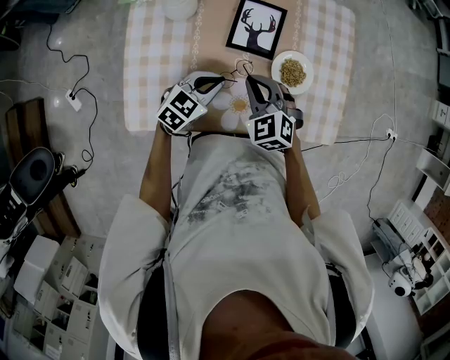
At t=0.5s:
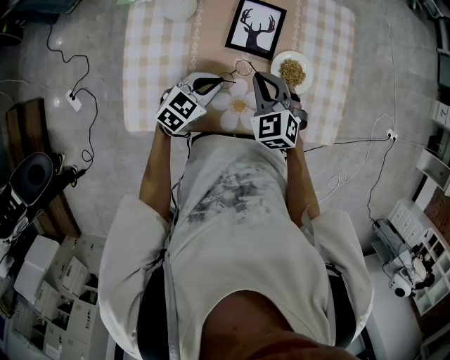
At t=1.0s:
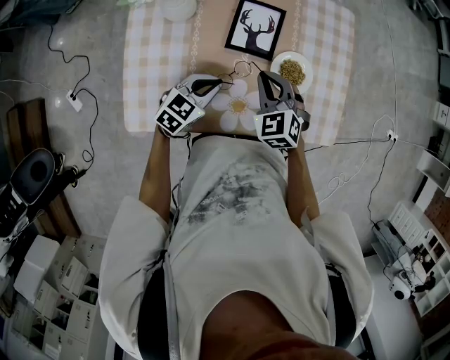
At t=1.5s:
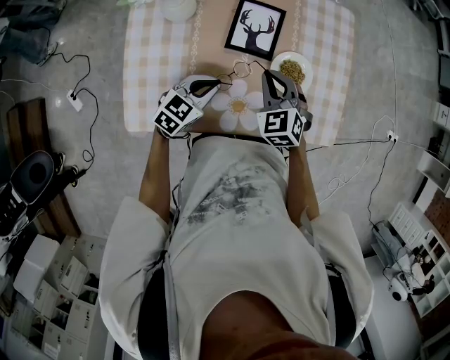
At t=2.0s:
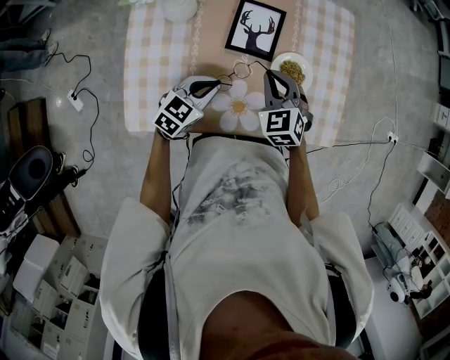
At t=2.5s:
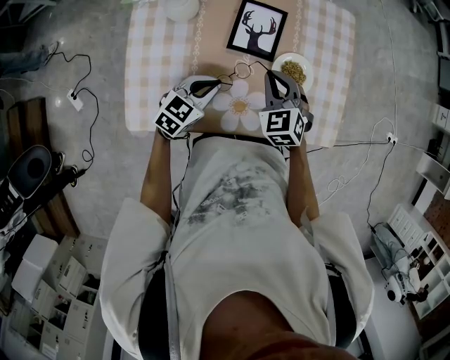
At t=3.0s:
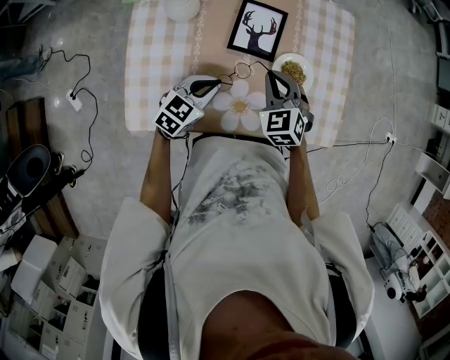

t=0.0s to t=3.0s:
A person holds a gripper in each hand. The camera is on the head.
t=0.0s to t=1.5s: The right gripper shifts by about 5 cm.
t=1.5s to t=3.0s: The two grippers keep their place.

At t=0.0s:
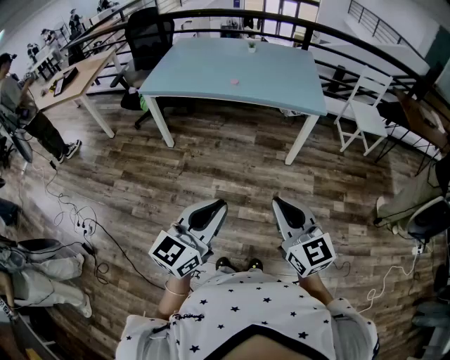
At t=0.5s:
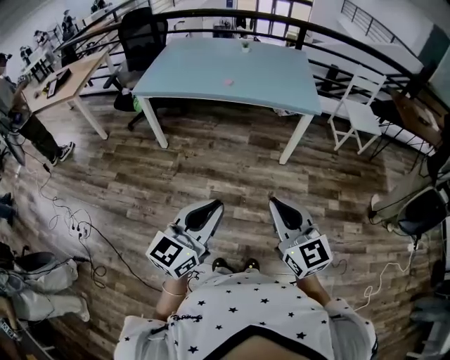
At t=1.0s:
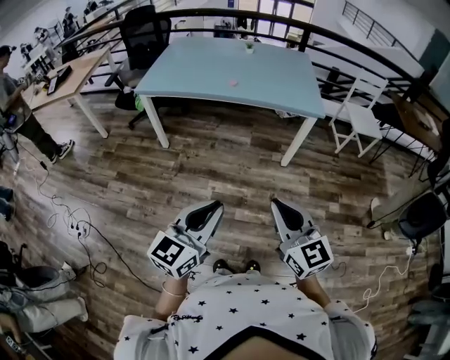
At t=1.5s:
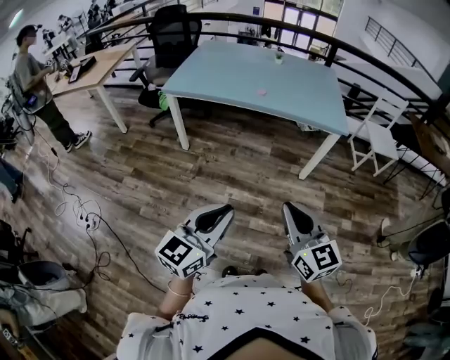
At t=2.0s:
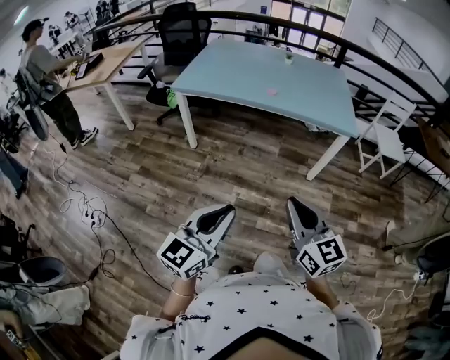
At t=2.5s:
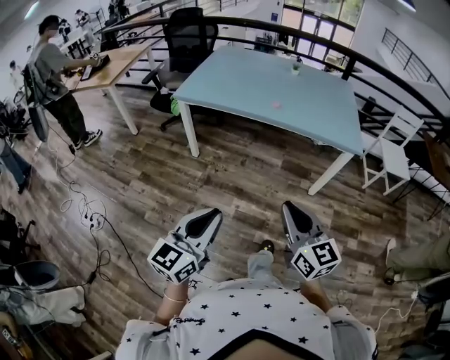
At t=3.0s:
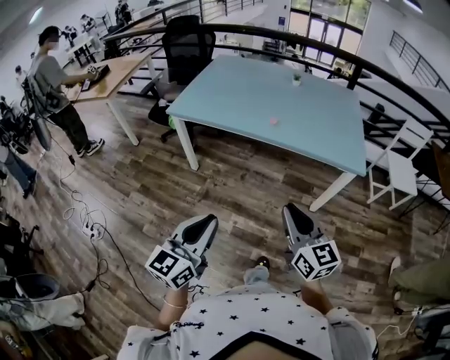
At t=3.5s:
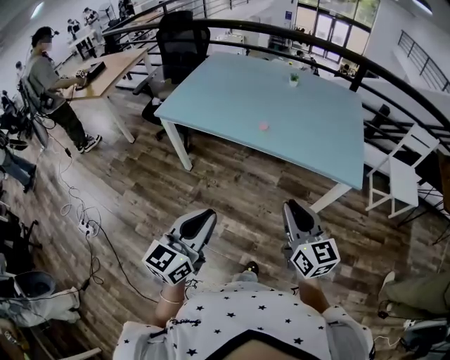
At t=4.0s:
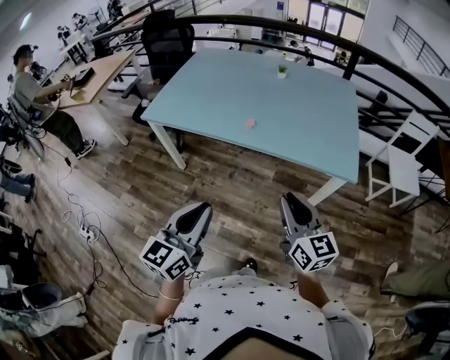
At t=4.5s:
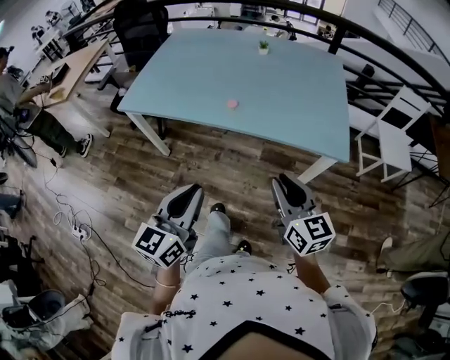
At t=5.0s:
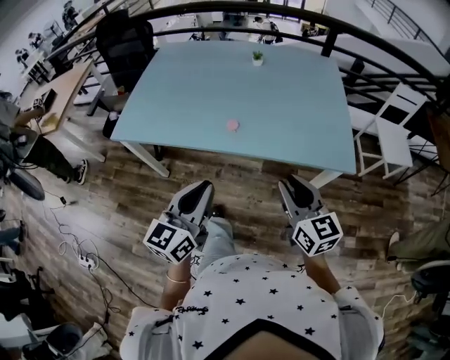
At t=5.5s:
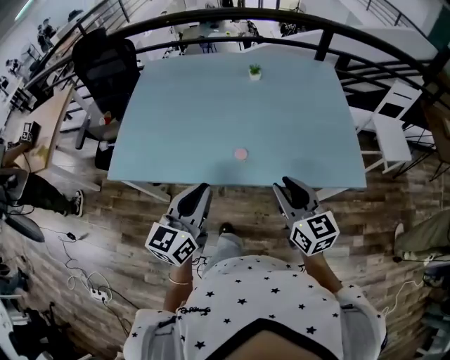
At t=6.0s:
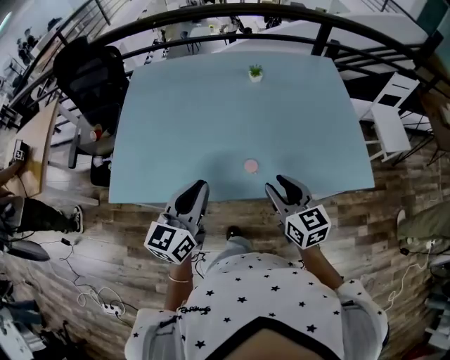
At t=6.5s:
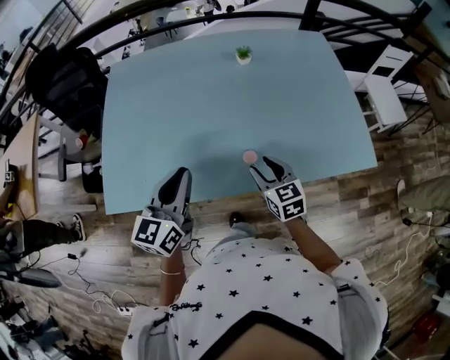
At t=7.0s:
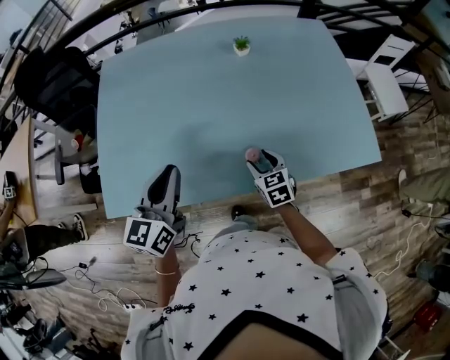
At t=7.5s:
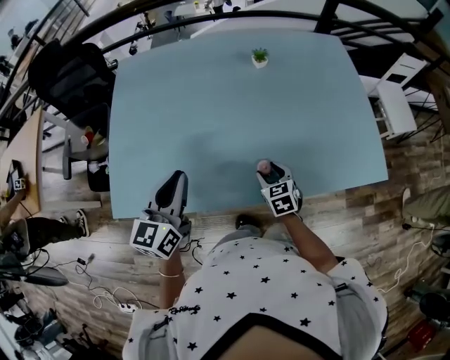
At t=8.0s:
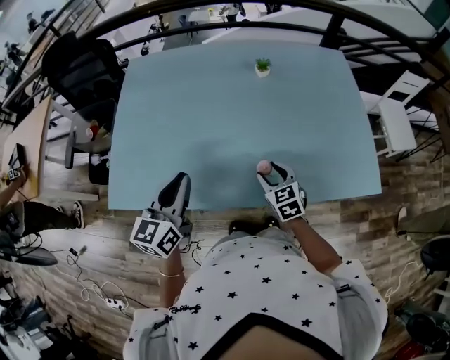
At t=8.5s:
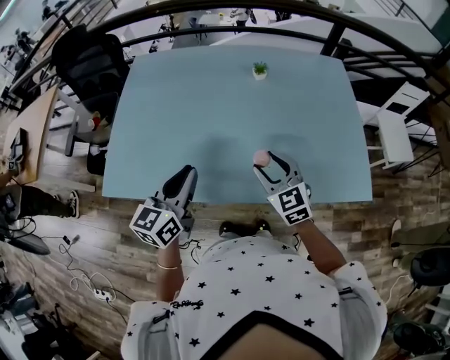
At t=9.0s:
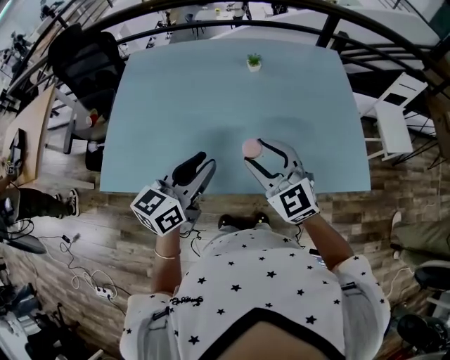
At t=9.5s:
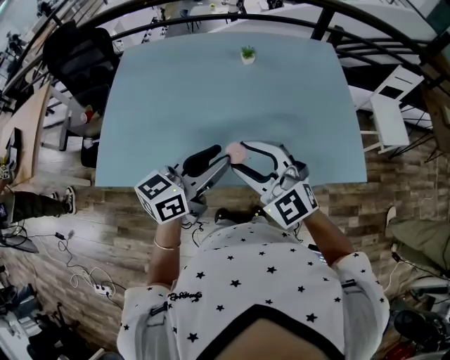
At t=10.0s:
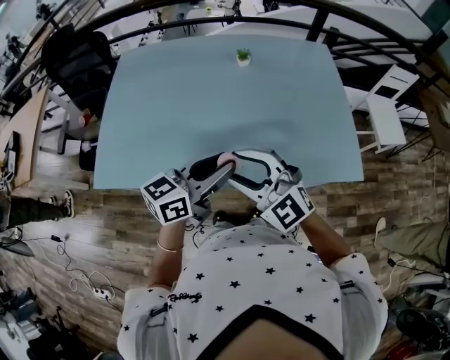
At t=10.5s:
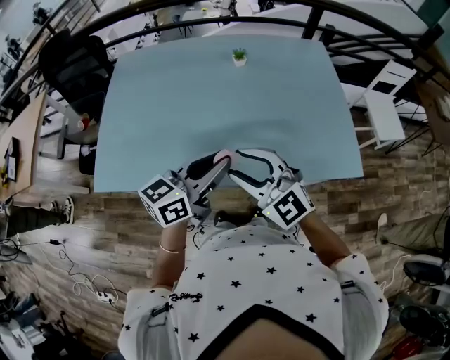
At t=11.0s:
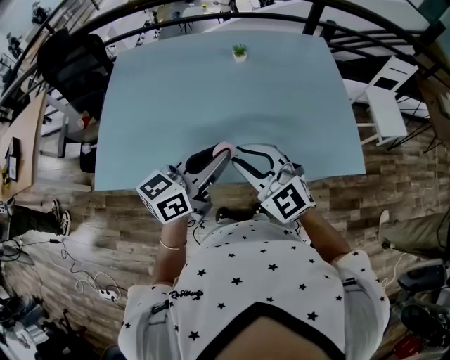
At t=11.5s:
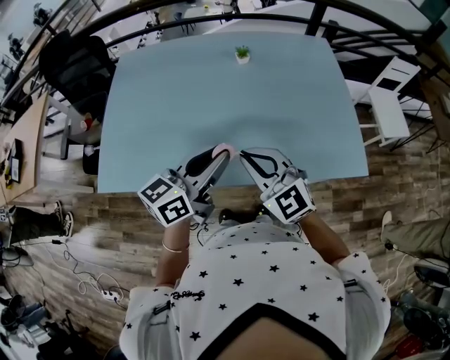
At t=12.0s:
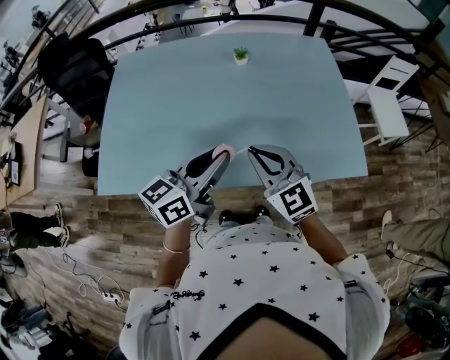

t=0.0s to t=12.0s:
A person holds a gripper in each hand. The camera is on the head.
t=0.0s to t=2.0s: The grippers both shift to the left by some 10 cm.
t=2.0s to t=4.0s: Both grippers move forward and to the right, approximately 35 cm.
t=4.0s to t=6.0s: The left gripper is displaced forward by some 40 cm. The right gripper heads forward and to the left, covering about 35 cm.
t=6.0s to t=8.0s: The left gripper travels forward and to the left by some 10 cm, while the right gripper moves downward and forward, approximately 15 cm, and swivels roughly 20 degrees.
t=8.0s to t=10.0s: The left gripper is displaced to the right by about 20 cm, rotates roughly 30 degrees, and opens; the right gripper moves upward and backward, about 25 cm, and changes its angle by about 50 degrees.
t=10.0s to t=12.0s: The right gripper moves some 5 cm, changes its angle by roughly 20 degrees, and closes its fingers.

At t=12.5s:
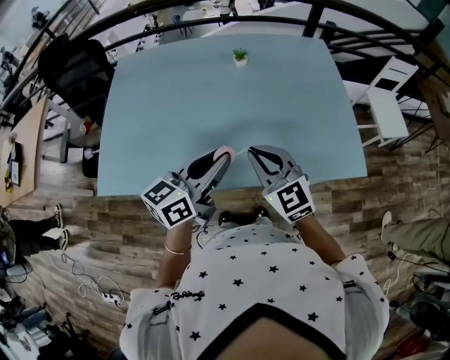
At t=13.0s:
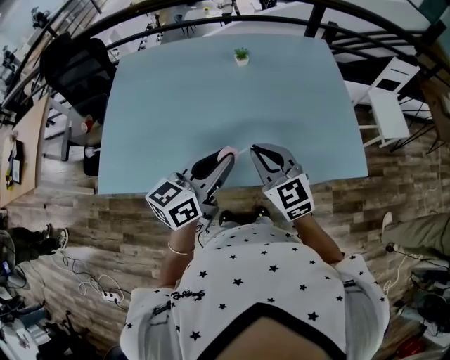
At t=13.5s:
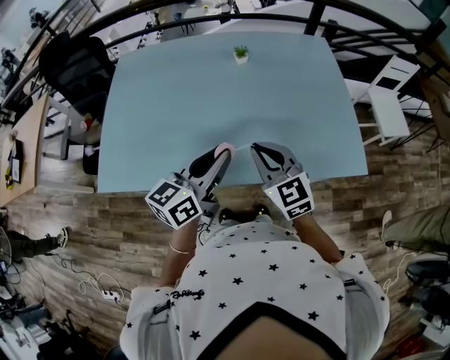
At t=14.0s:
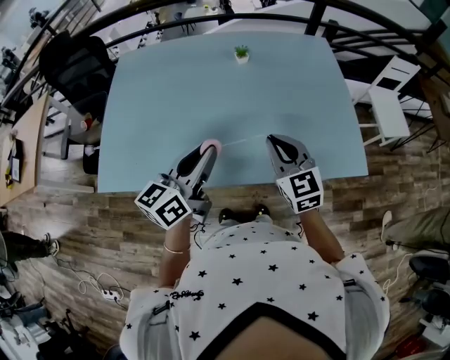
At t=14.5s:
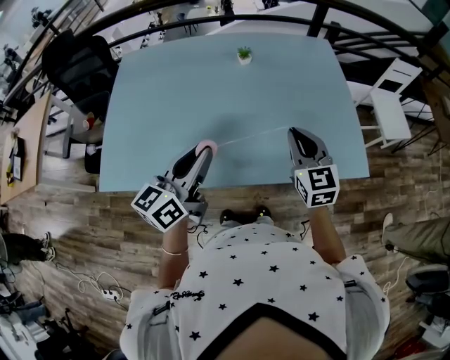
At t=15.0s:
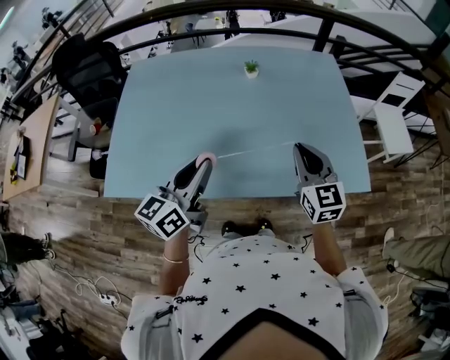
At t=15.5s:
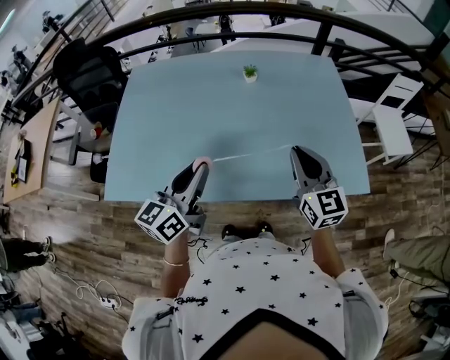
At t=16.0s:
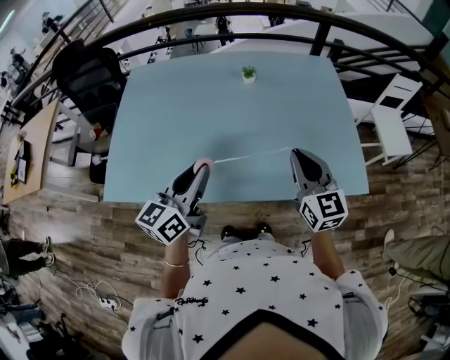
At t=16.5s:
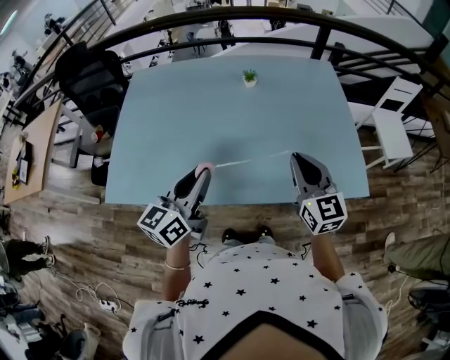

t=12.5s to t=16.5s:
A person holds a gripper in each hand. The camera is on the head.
t=12.5s to t=14.5s: The right gripper moves to the right and forward, roughly 10 cm, and rotates some 20 degrees.
t=14.5s to t=16.5s: The grippers move only a little.

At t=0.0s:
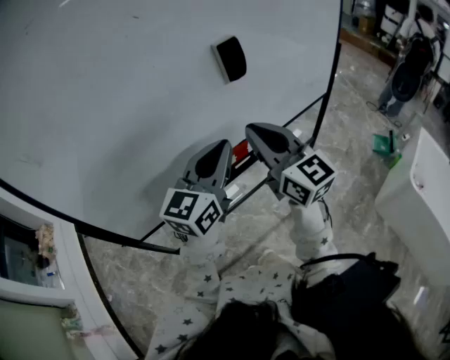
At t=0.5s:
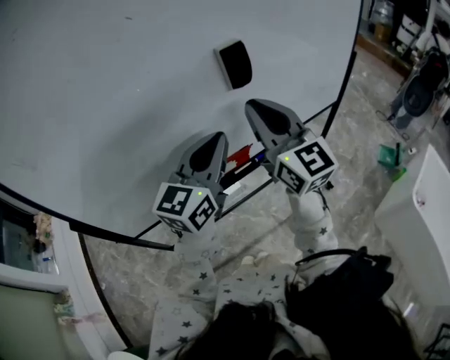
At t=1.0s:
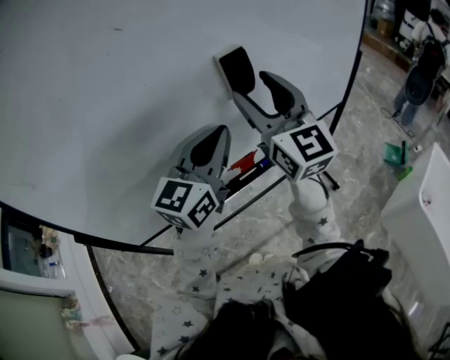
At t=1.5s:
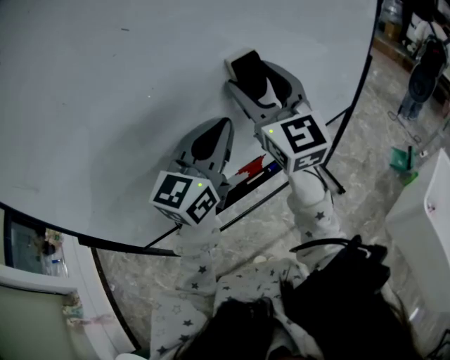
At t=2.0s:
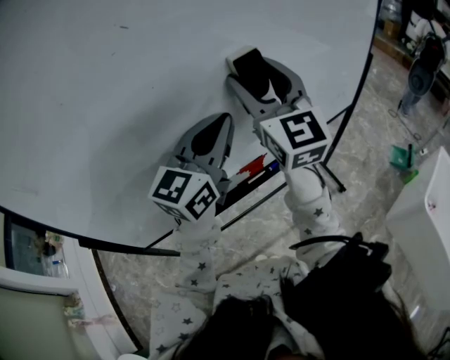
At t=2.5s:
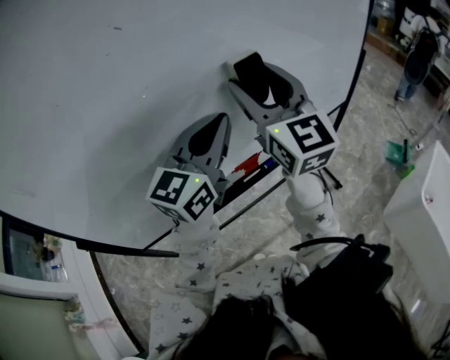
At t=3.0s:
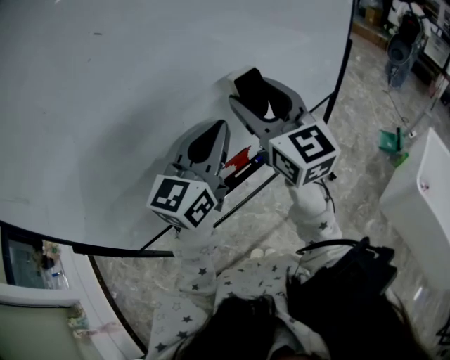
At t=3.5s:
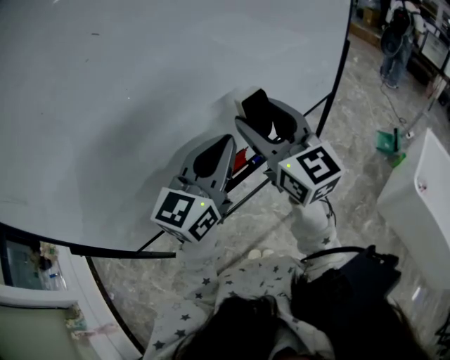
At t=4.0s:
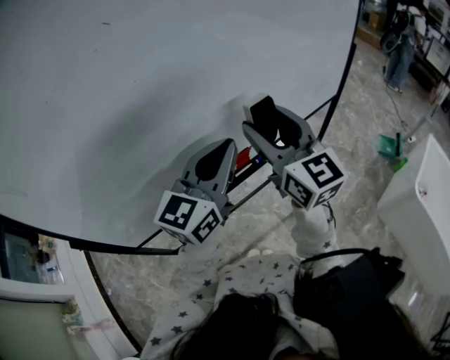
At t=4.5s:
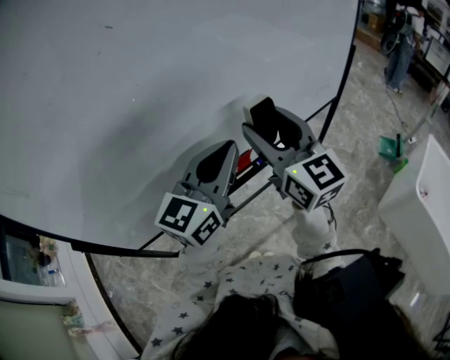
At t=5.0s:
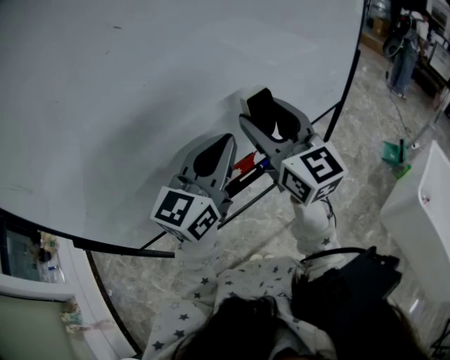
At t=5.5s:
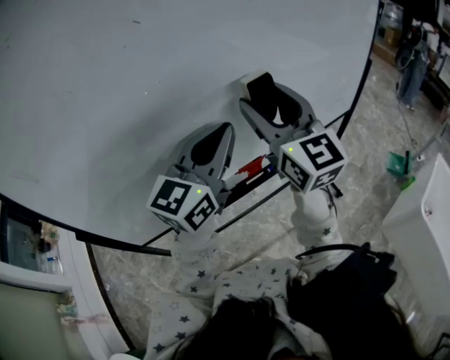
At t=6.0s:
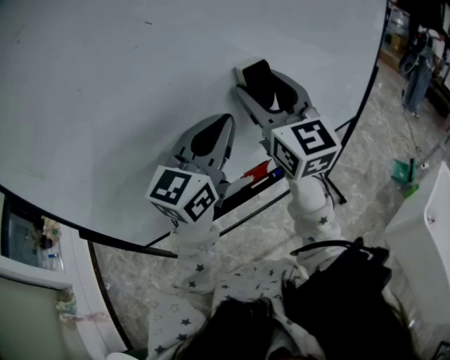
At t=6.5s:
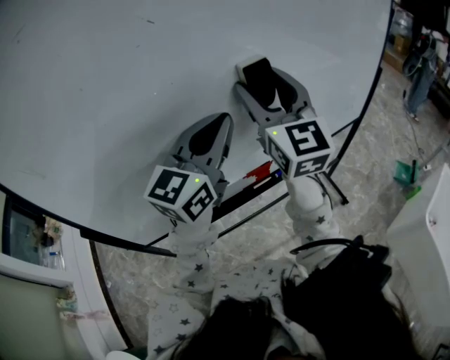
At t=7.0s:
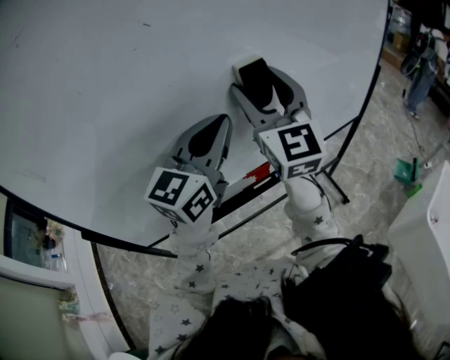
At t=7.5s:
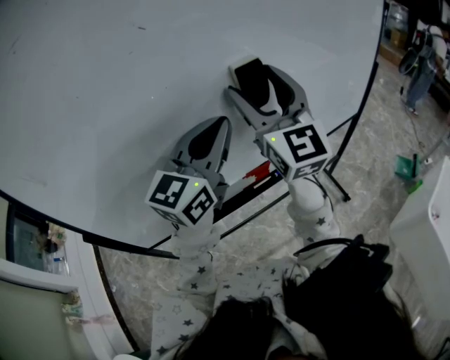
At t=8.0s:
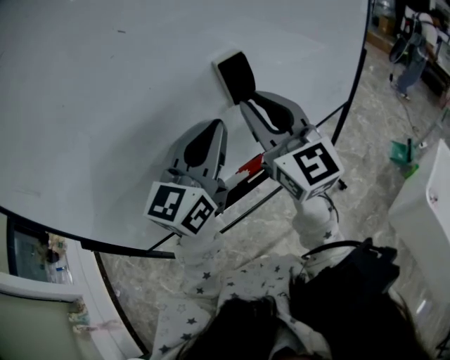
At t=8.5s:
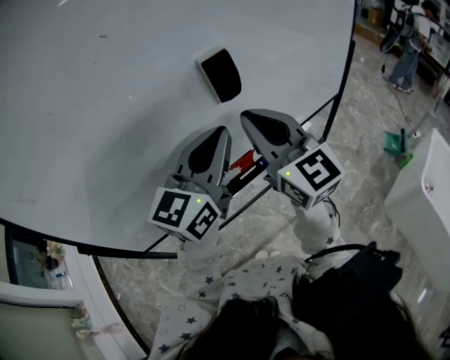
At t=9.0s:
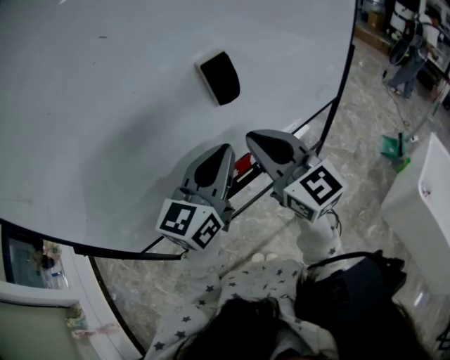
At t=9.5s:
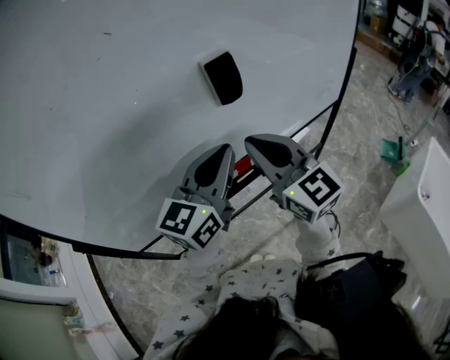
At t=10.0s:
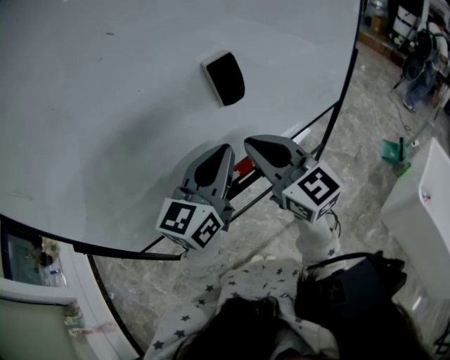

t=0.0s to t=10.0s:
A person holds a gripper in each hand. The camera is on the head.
t=0.0s to t=2.0s: The right gripper heads forward and upward, covering about 20 cm, turns by about 20 degrees, and opens its fingers, while the left gripper is displaced forward and upward by roughly 10 cm.
t=2.0s to t=4.0s: The left gripper heads backward, covering about 5 cm. The right gripper moves downward and backward, about 10 cm.
t=4.0s to t=6.0s: The left gripper moves upward, some 5 cm; the right gripper shifts approximately 10 cm upward, forward and to the left.
t=6.0s to t=8.0s: The right gripper shifts by roughly 5 cm, and closes.
t=8.0s to t=10.0s: The two grippers go roughly 5 cm downward.
